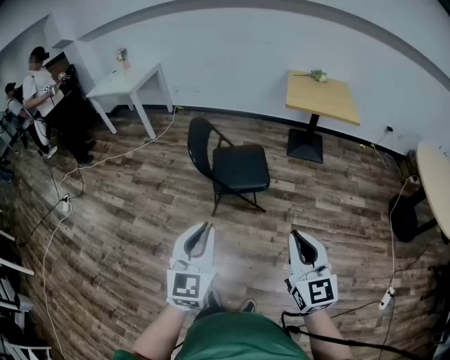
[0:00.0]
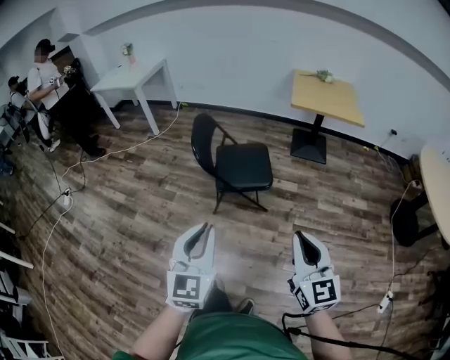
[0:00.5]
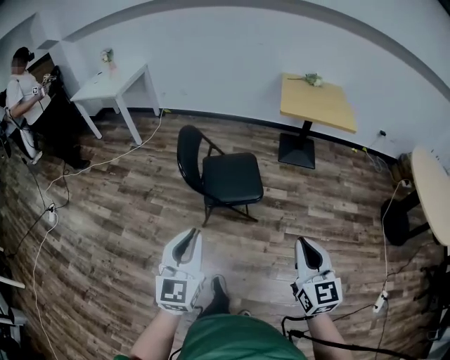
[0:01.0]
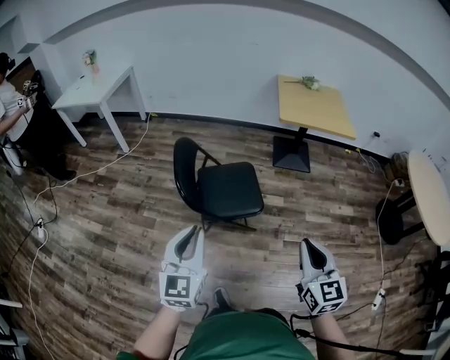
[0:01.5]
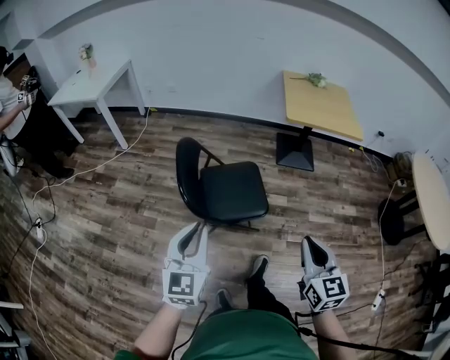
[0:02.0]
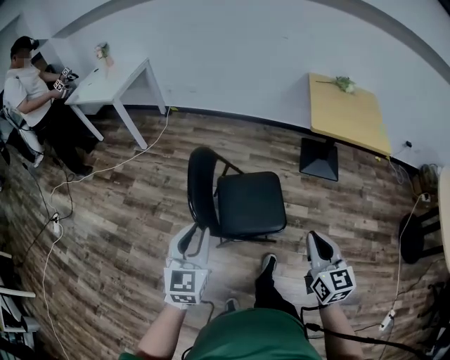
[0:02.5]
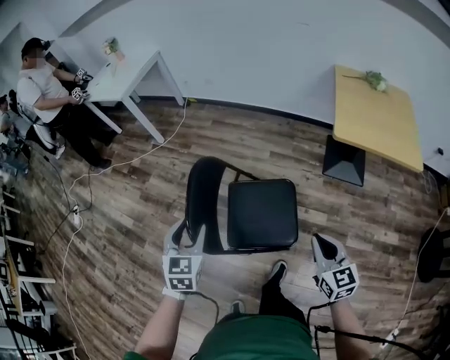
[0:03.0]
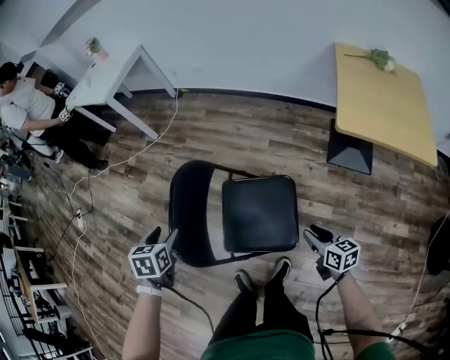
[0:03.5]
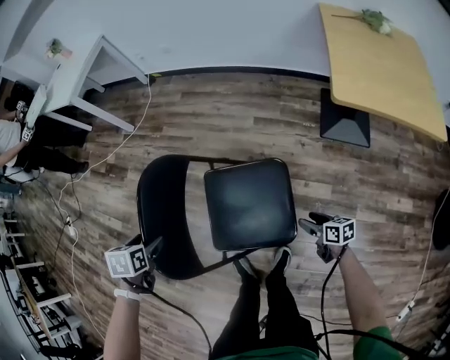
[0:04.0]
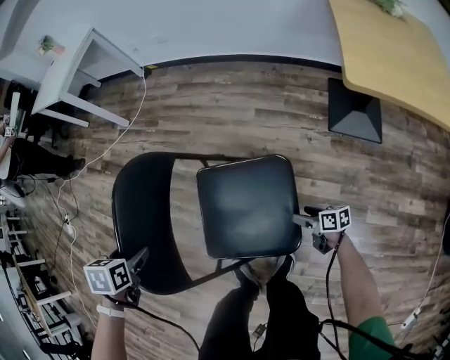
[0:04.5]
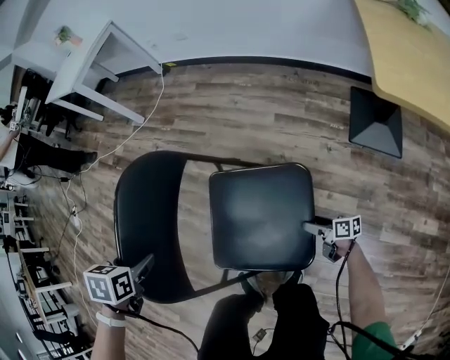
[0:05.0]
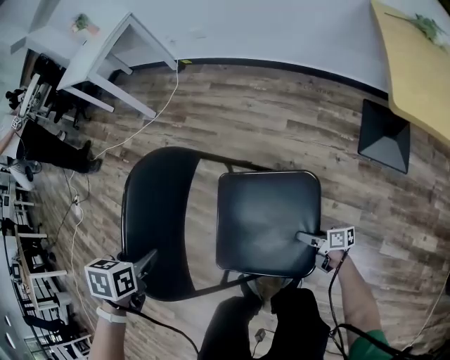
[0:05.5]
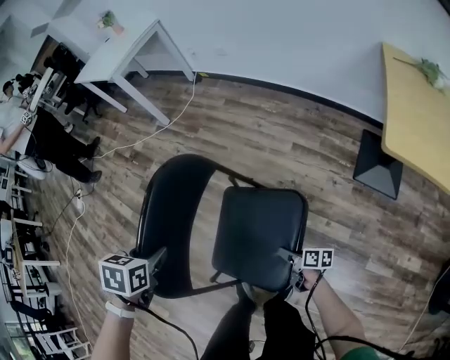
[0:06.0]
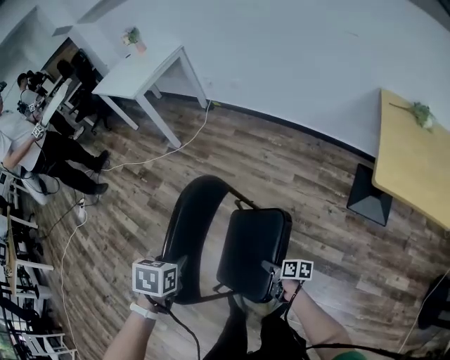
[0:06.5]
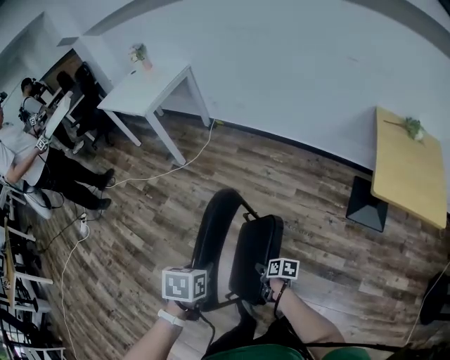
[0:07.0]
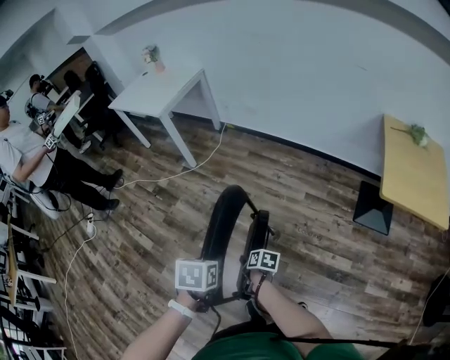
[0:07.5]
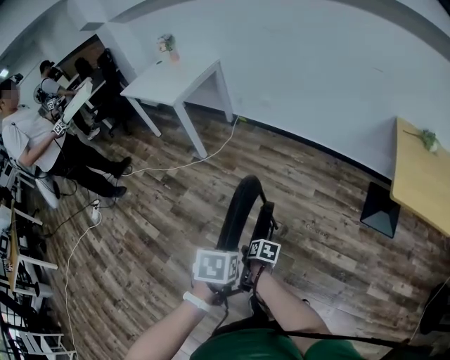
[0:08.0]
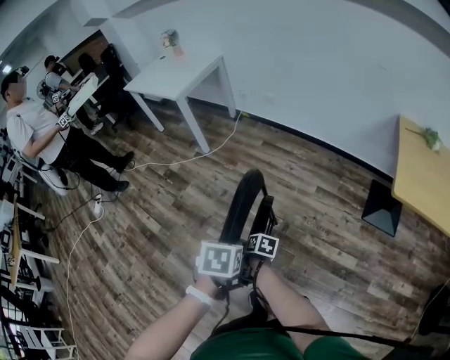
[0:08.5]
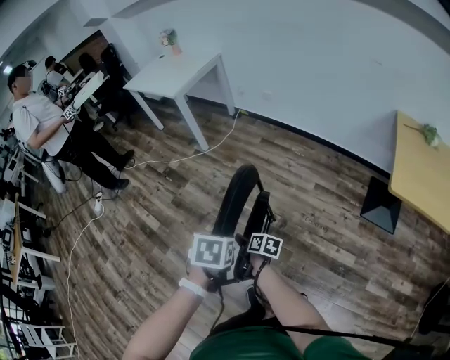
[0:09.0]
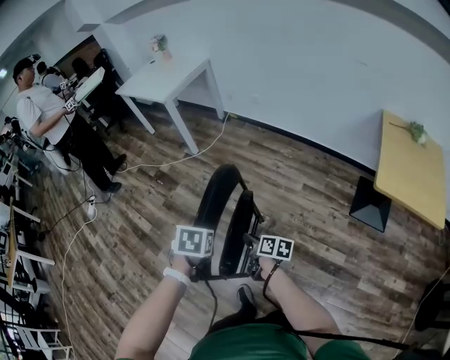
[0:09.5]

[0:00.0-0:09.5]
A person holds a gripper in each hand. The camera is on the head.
0:00.0 to 0:02.0: Both grippers travel together forward, some 30 cm.
0:02.0 to 0:04.0: The left gripper shifts by about 40 cm, points its fingers some 60 degrees further downward, and opens up; the right gripper goes roughly 50 cm downward, changes its angle by approximately 60 degrees, and opens.
0:04.0 to 0:05.5: The right gripper shifts some 20 cm downward and forward, and turns by approximately 30 degrees.
0:05.5 to 0:07.5: The left gripper shifts roughly 20 cm upward, and closes up; the right gripper is displaced to the left, upward and forward by approximately 50 cm, and changes its angle by roughly 30 degrees.
0:07.5 to 0:09.5: The right gripper moves upward, some 10 cm, and changes its angle by roughly 20 degrees.

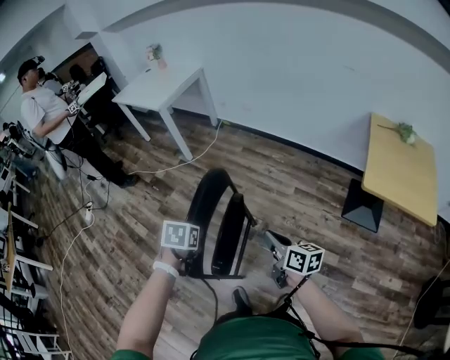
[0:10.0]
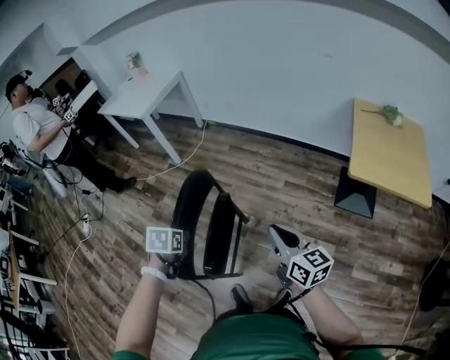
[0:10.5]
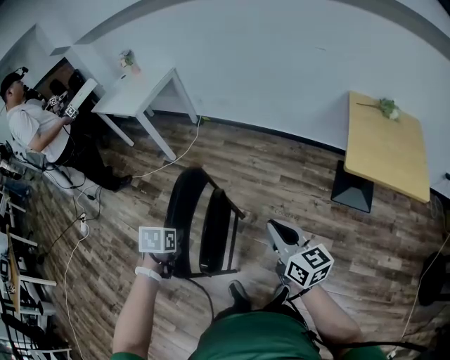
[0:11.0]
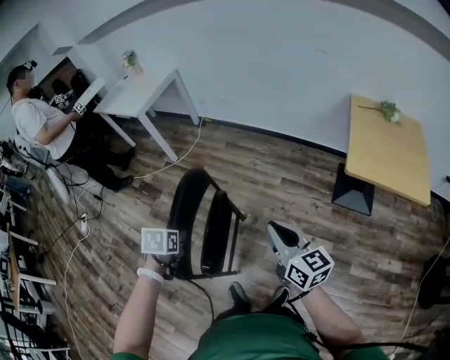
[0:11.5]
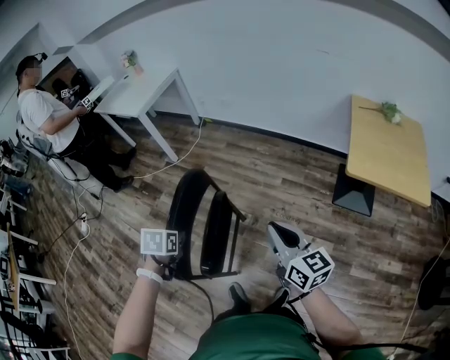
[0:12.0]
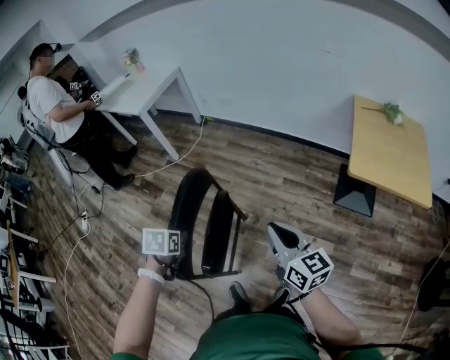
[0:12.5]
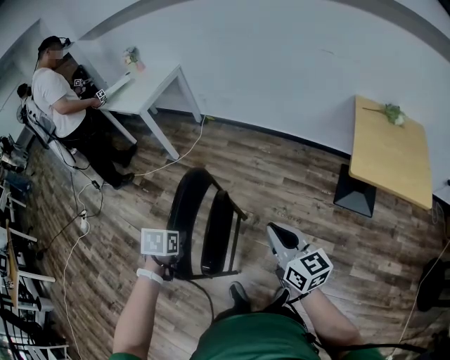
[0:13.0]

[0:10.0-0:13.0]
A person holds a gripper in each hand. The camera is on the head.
0:10.0 to 0:11.5: The right gripper heads upward and to the right, covering about 15 cm, and changes its angle by some 30 degrees.
0:11.5 to 0:13.0: The grippers stay close to where they were, moving slightly.

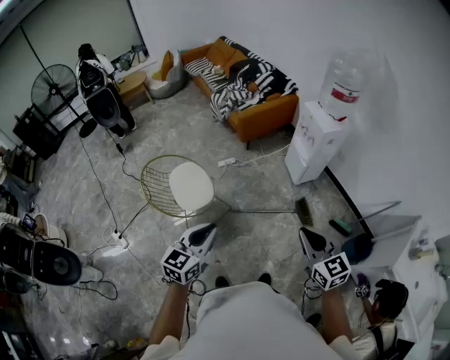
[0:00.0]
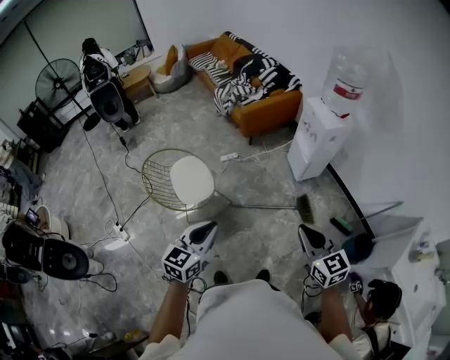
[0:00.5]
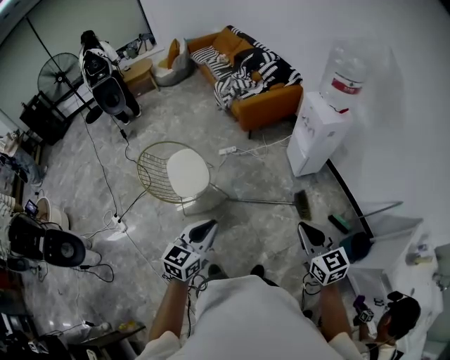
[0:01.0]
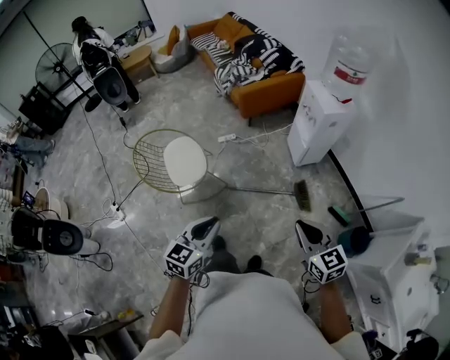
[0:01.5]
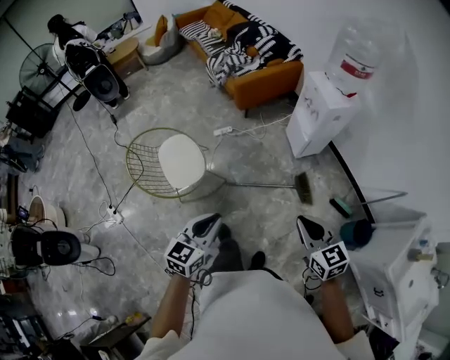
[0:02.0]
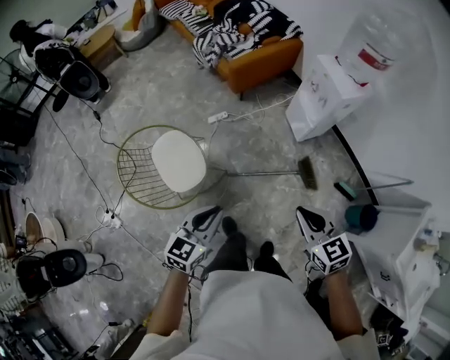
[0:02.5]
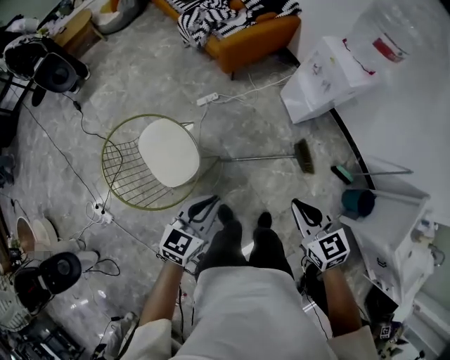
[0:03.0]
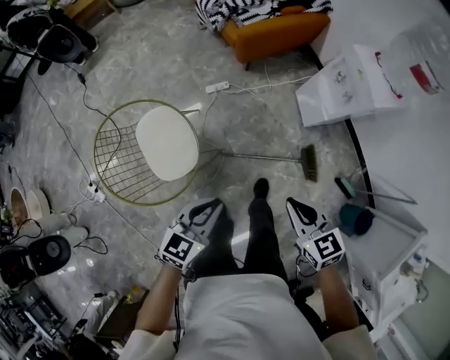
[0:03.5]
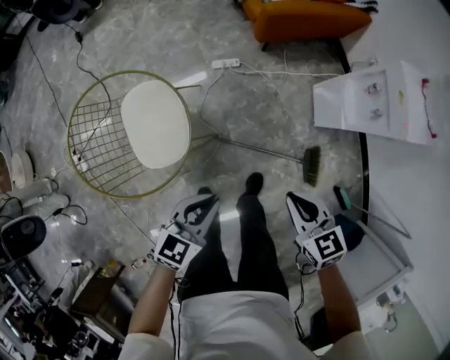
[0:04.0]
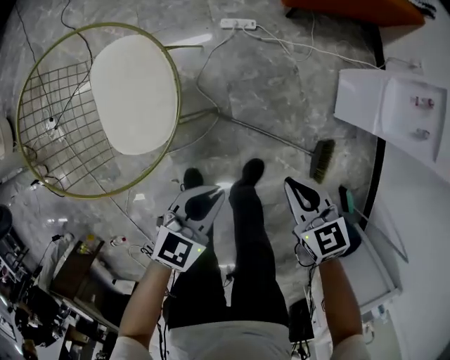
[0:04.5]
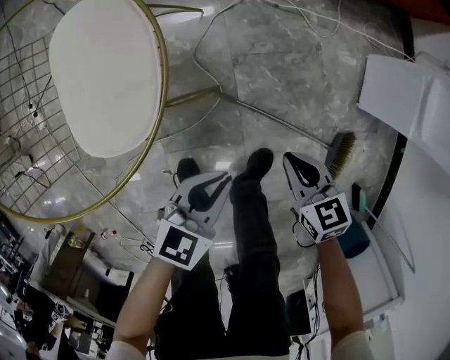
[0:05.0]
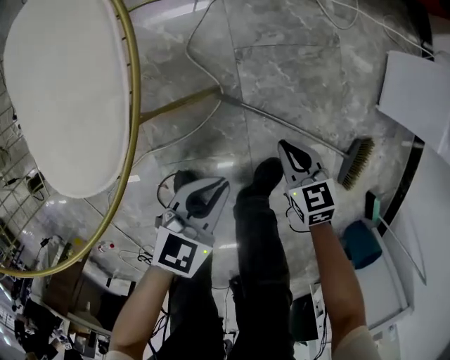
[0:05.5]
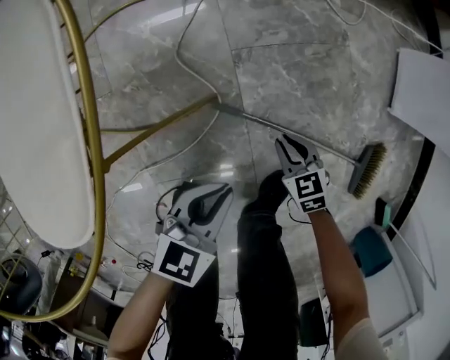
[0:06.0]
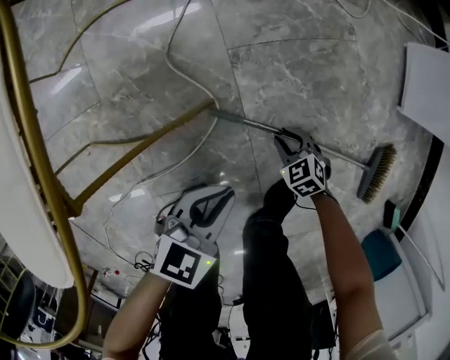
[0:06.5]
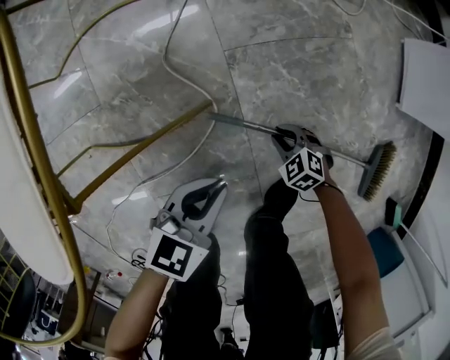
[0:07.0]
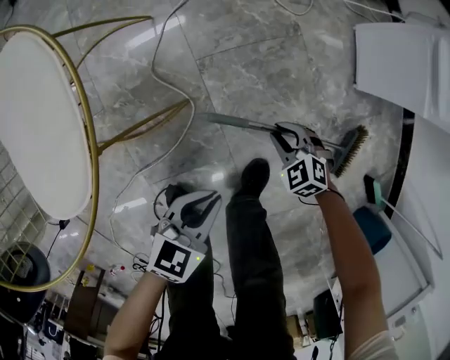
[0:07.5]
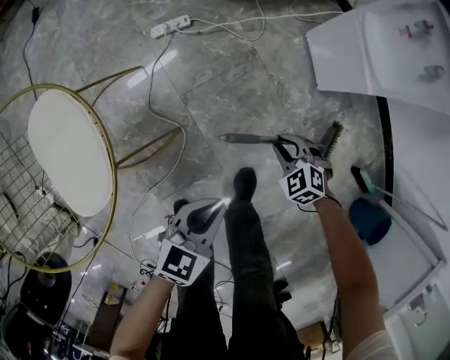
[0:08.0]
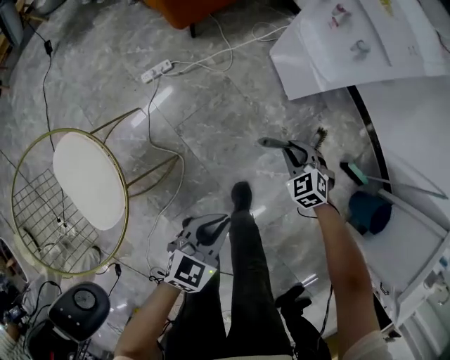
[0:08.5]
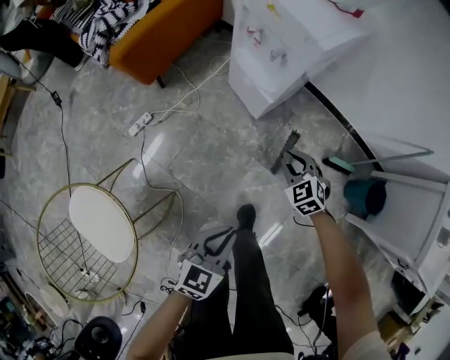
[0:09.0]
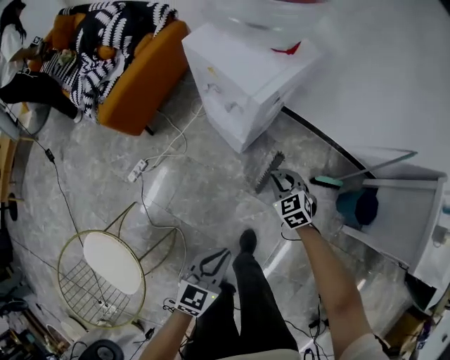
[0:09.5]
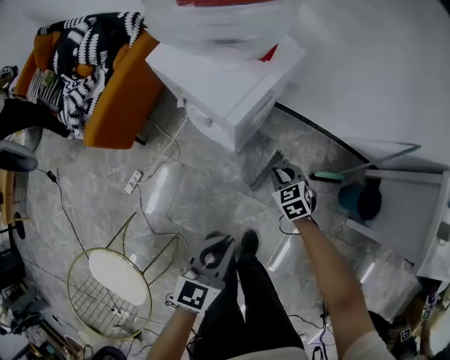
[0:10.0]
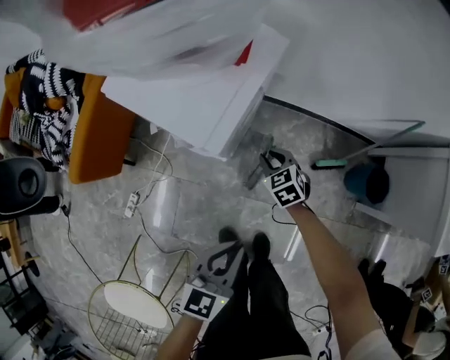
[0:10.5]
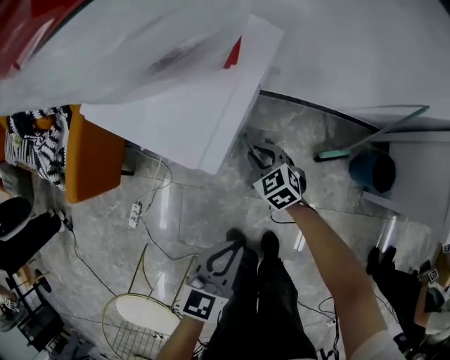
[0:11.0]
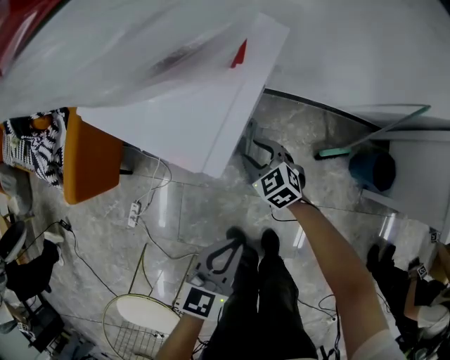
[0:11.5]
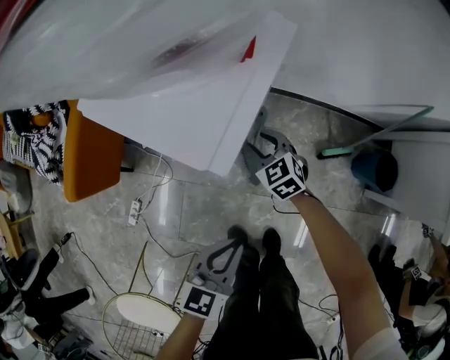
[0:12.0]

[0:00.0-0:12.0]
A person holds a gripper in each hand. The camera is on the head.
0:00.0 to 0:02.0: The right gripper heads downward, forward and to the right, covering approximately 10 cm, while the left gripper travels to the right, downward and forward by about 10 cm.
0:02.0 to 0:04.0: Both grippers travel together forward and downward, roughly 40 cm. The right gripper swivels some 20 degrees.
0:04.0 to 0:06.0: Both grippers travel together downward, some 70 cm.
0:06.0 to 0:08.0: The grippers both shift upward and to the right by some 25 cm. The right gripper changes its angle by about 20 degrees.
0:08.0 to 0:10.0: The left gripper changes place by approximately 50 cm, and swivels approximately 20 degrees, while the right gripper shifts by about 50 cm, and rotates around the line of its fingers by roughly 50 degrees, clockwise from behind.
0:10.0 to 0:12.0: The right gripper heads forward, to the left and downward, covering some 15 cm. The left gripper is displaced downward and forward by approximately 15 cm.

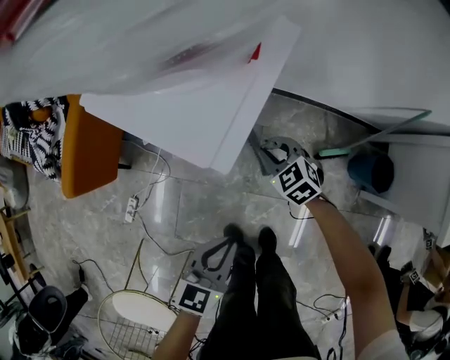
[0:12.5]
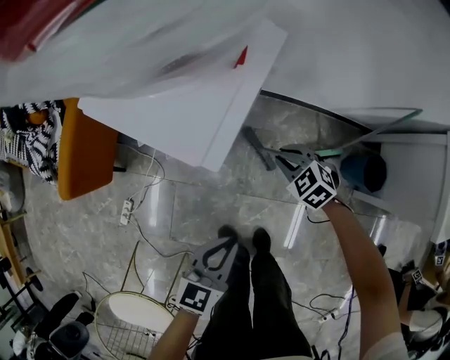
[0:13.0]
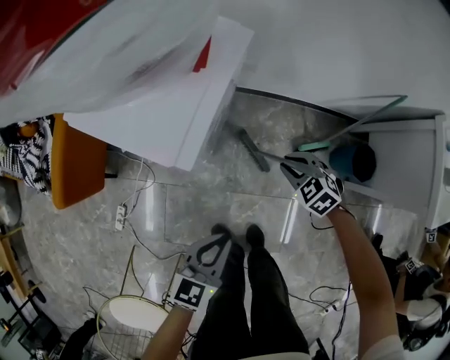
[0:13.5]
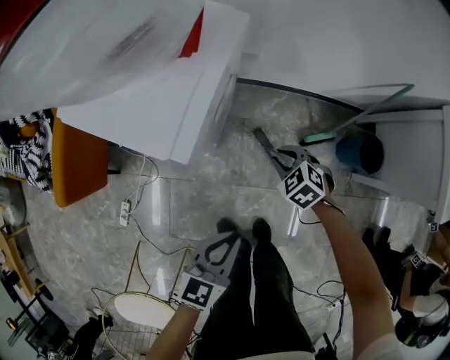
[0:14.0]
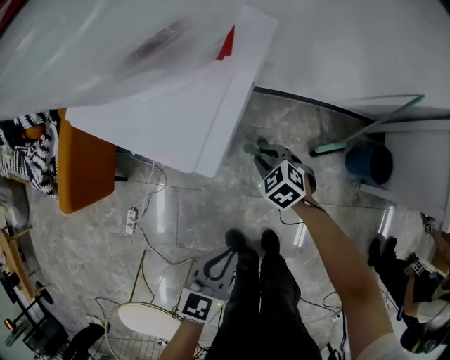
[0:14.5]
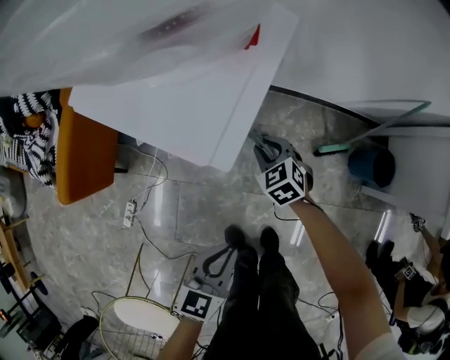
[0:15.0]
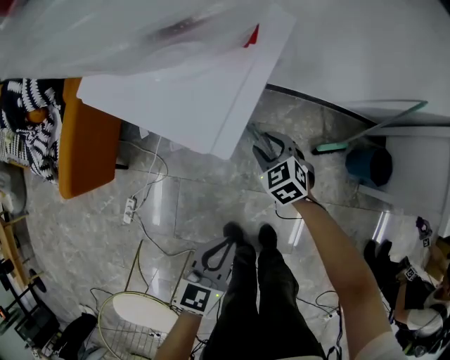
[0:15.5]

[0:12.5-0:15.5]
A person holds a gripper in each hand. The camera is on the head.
0:12.5 to 0:14.0: The right gripper goes approximately 15 cm to the right and backward. Meanwhile the left gripper travels to the right by approximately 5 cm.
0:14.0 to 0:15.5: The left gripper shifts some 5 cm to the left. The right gripper goes approximately 10 cm to the left, and opens up.
